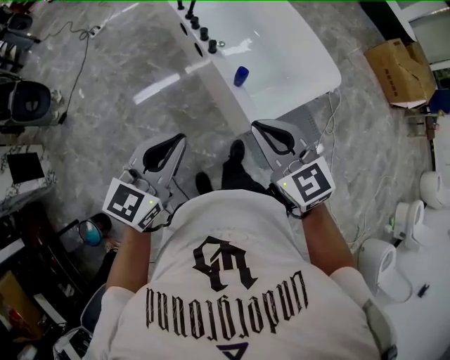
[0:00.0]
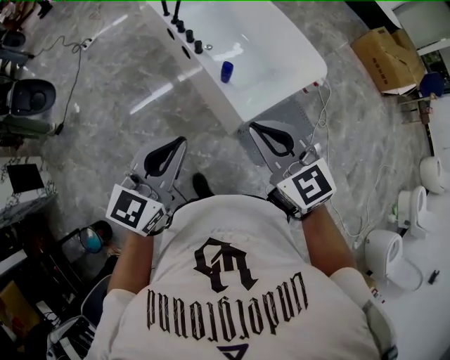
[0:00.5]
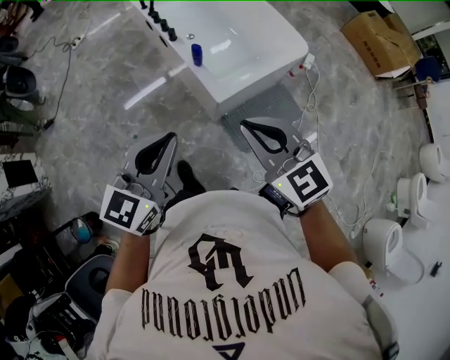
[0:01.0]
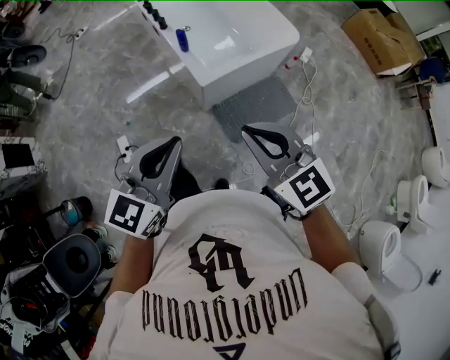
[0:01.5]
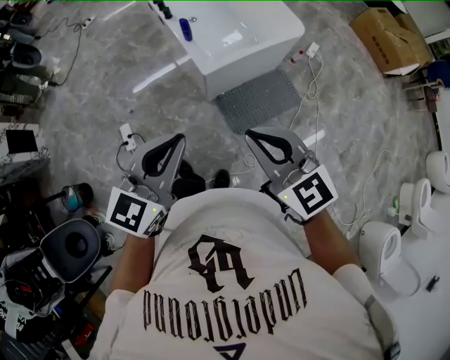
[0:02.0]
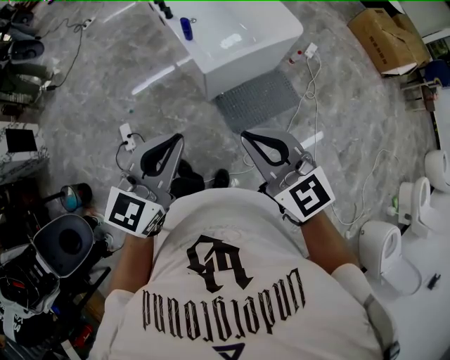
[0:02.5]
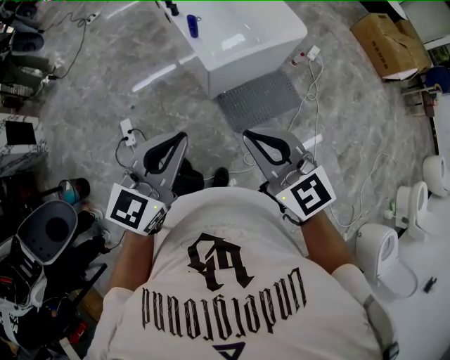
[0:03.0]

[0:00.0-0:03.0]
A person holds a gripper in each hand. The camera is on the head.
0:00.0 to 0:01.5: The two grippers go approximately 40 cm backward and to the right.
0:01.5 to 0:03.0: The two grippers go about 10 cm backward.

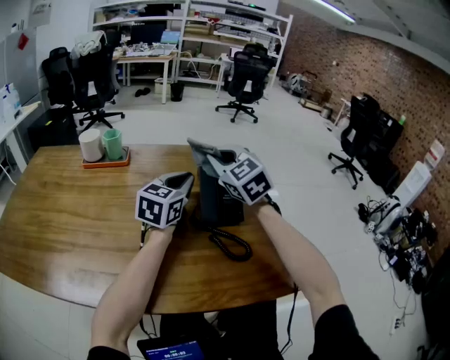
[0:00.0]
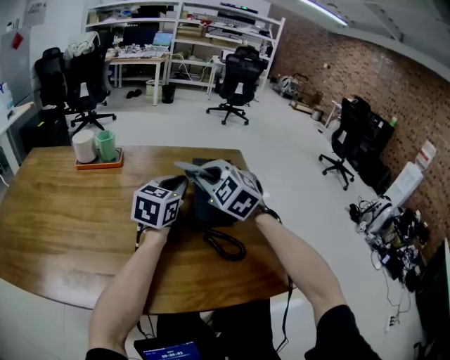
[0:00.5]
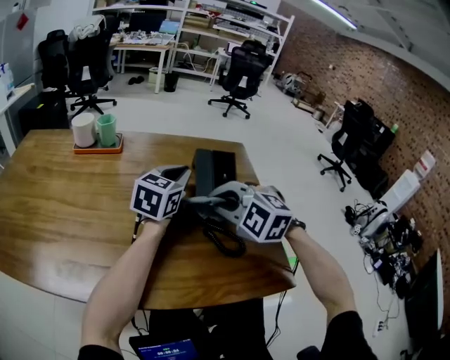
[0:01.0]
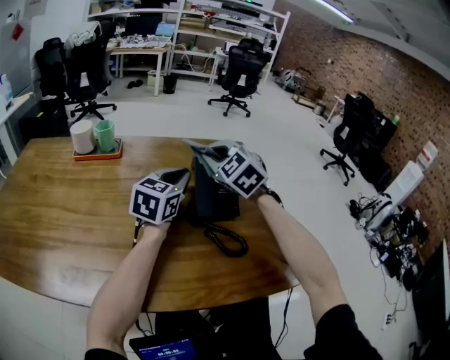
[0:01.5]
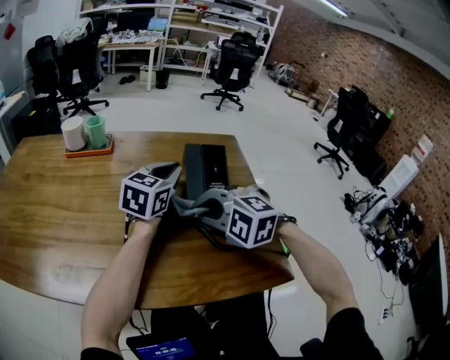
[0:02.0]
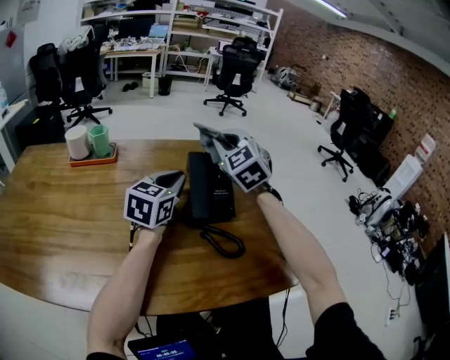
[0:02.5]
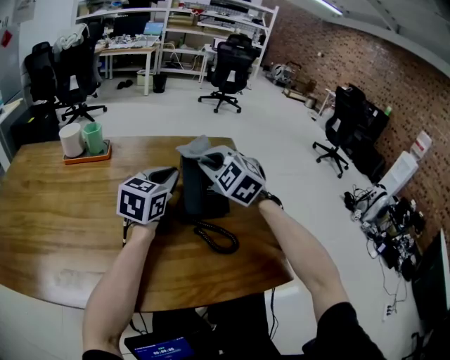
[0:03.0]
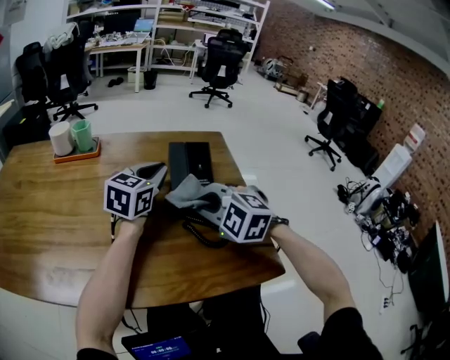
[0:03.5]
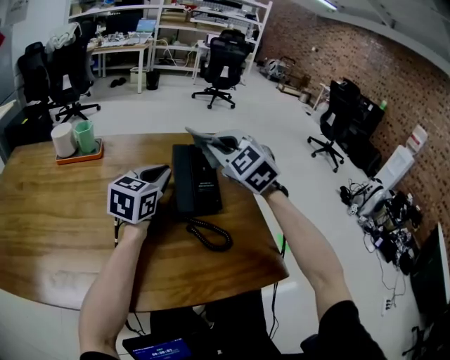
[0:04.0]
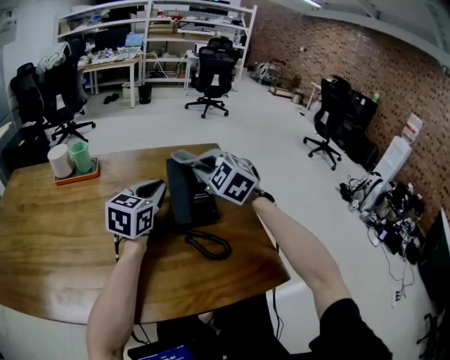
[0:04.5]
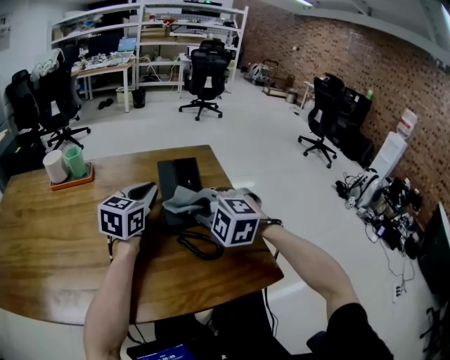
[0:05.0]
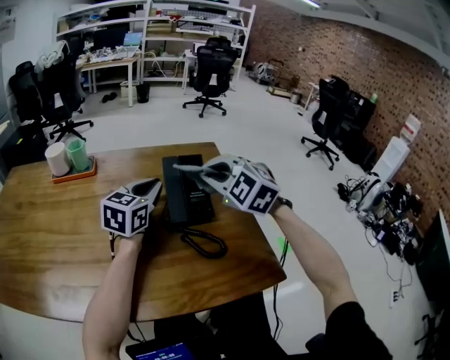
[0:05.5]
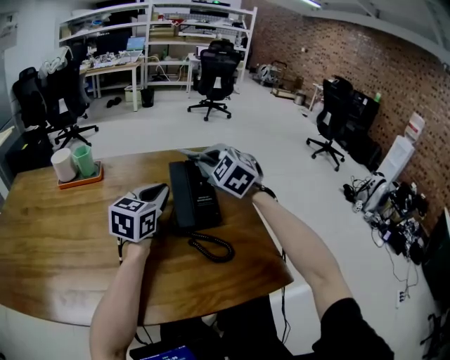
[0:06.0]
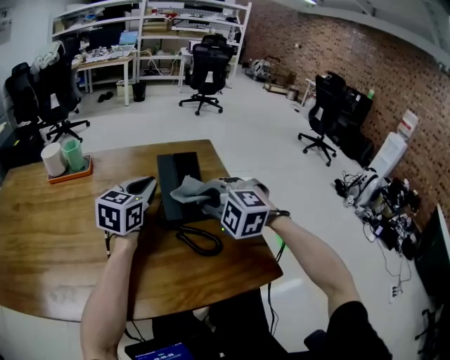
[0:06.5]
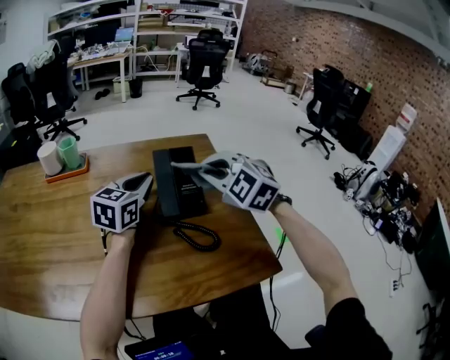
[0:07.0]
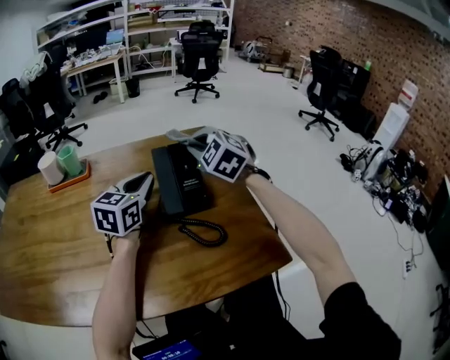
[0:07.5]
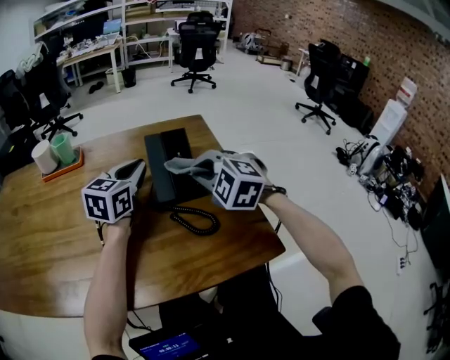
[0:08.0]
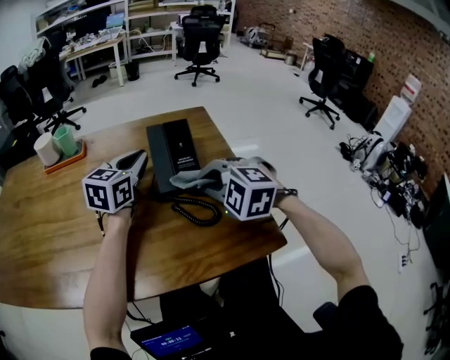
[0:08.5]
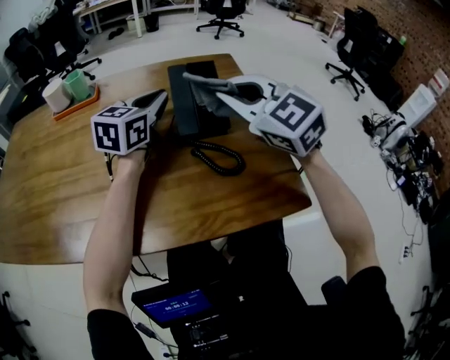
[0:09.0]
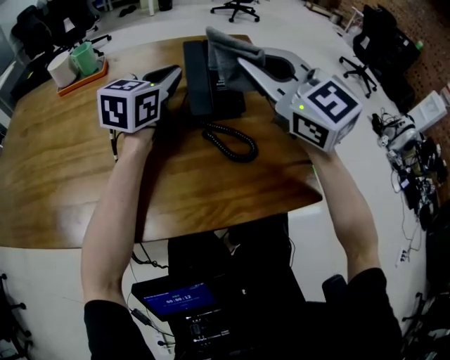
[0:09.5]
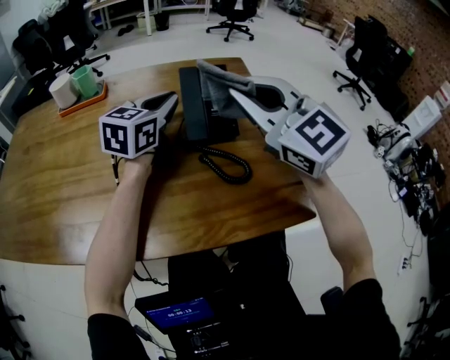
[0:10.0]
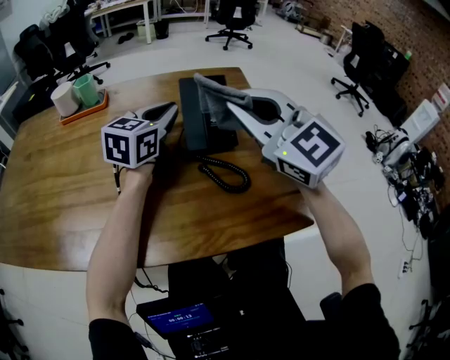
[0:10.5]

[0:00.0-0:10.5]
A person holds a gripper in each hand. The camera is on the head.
0:00.0 to 0:02.0: The right gripper moves forward and backward over some 15 cm, changing direction 2 times, and changes its angle by about 50 degrees.
0:02.0 to 0:04.0: The right gripper swings forward and backward, about 20 cm each way, with 2 reversals, and turns by about 40 degrees.
0:04.0 to 0:06.5: The right gripper goes forward and backward, some 15 cm each way, reversing 2 times, and swivels approximately 30 degrees.
0:06.5 to 0:08.5: The right gripper travels forward and back again, some 10 cm each way.
0:08.5 to 0:10.5: The right gripper goes roughly 15 cm upward, and tips its fingers upward by approximately 40 degrees.

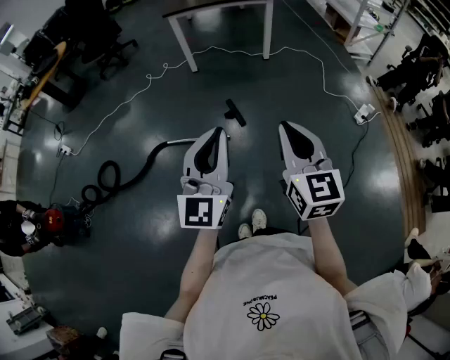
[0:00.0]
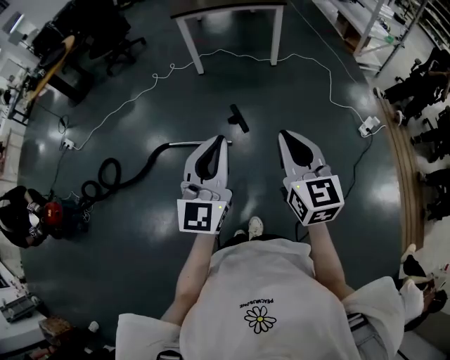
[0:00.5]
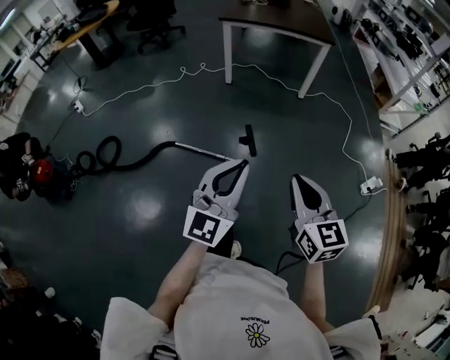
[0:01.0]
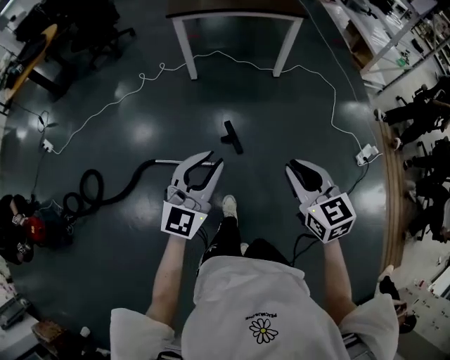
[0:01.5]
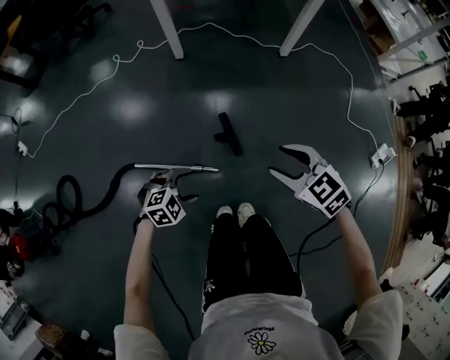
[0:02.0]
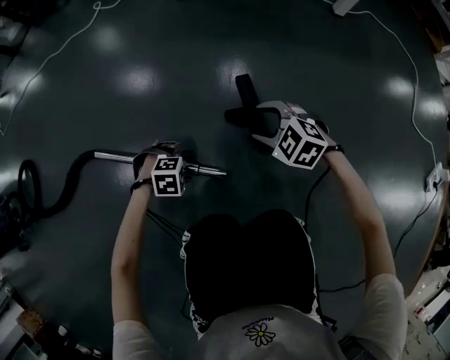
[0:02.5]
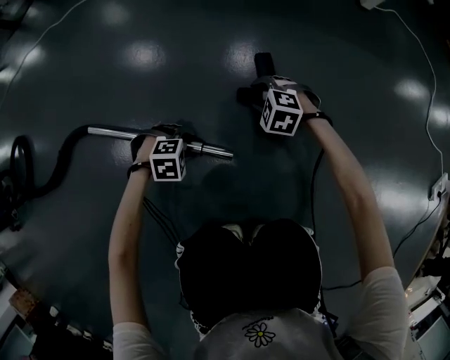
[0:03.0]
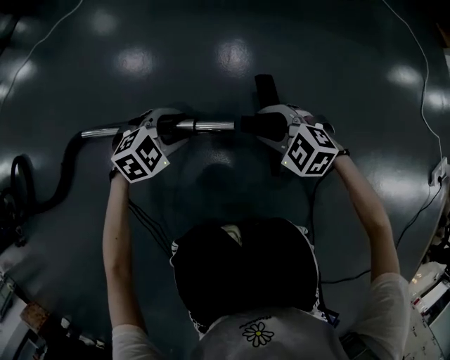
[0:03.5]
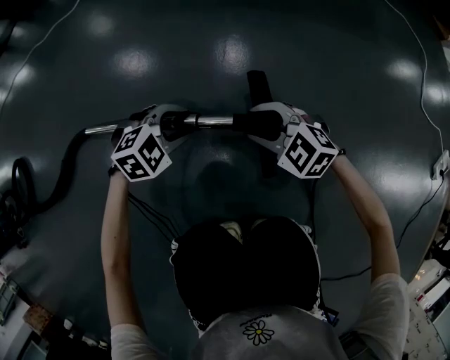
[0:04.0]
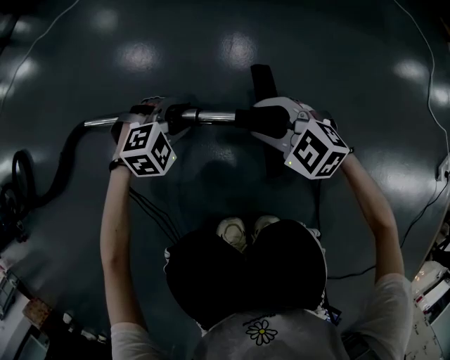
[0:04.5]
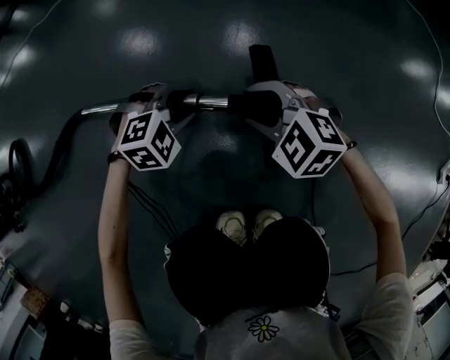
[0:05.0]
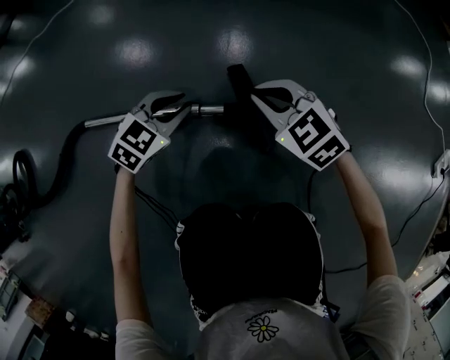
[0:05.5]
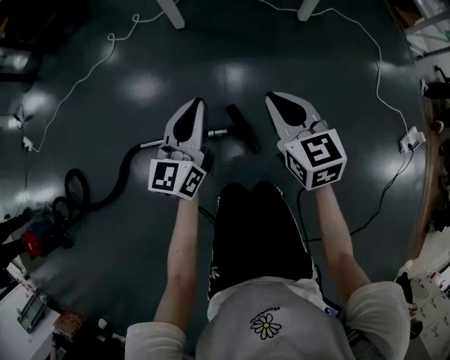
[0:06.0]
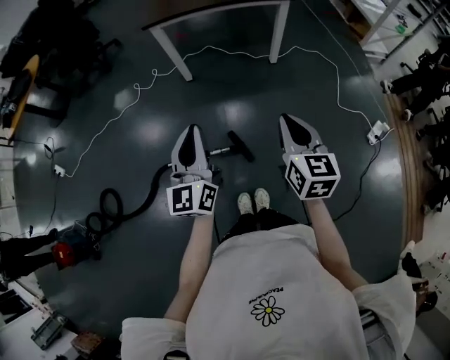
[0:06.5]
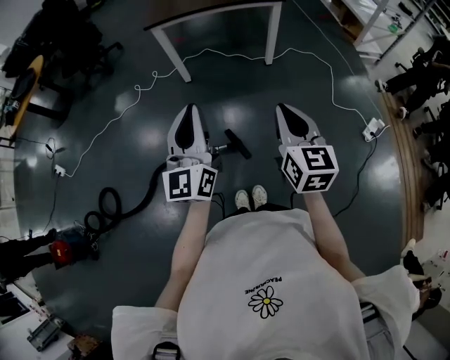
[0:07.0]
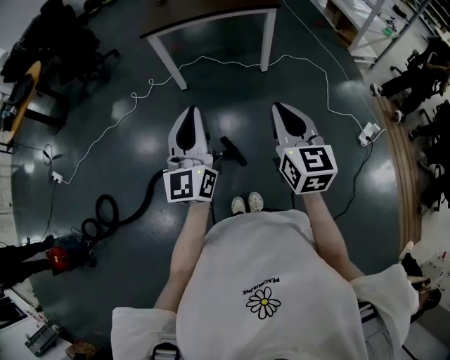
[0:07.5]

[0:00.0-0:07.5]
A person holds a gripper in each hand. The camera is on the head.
0:00.0 to 0:02.0: The right gripper goes about 60 cm forward and downward, points its fingers some 40 degrees further downward, and opens up. The left gripper goes about 70 cm downward and forward, points its fingers roughly 70 degrees further downward, and opens up.
0:02.0 to 0:04.0: The grippers both shift downward by about 50 cm. The left gripper closes its fingers, while the right gripper changes its angle by some 30 degrees.
0:04.0 to 0:05.5: The right gripper moves approximately 5 cm, and closes up, while the left gripper rotates approximately 30 degrees.
0:05.5 to 0:07.5: The grippers both shift upward by about 90 cm. The left gripper points its fingers some 60 degrees further upward; the right gripper tilts its fingers roughly 30 degrees upward.

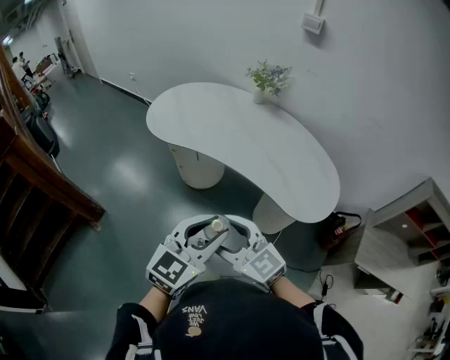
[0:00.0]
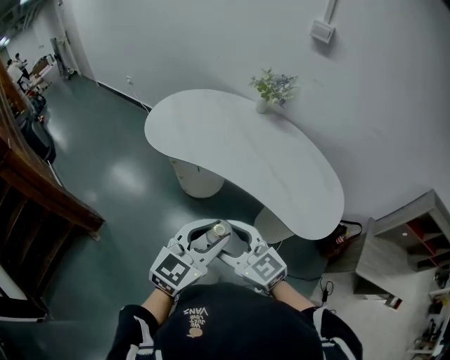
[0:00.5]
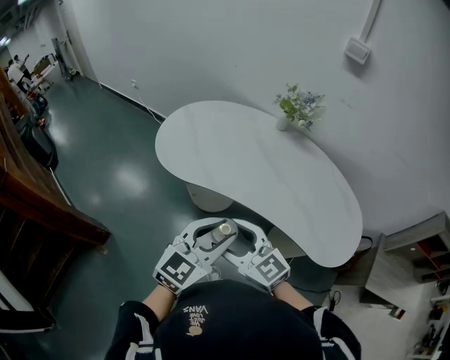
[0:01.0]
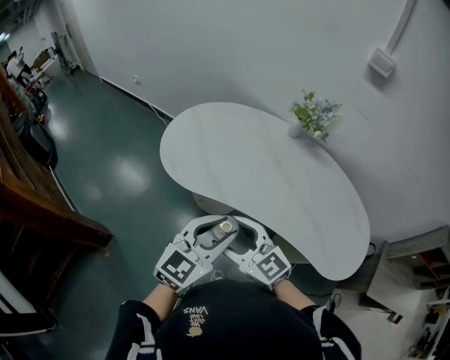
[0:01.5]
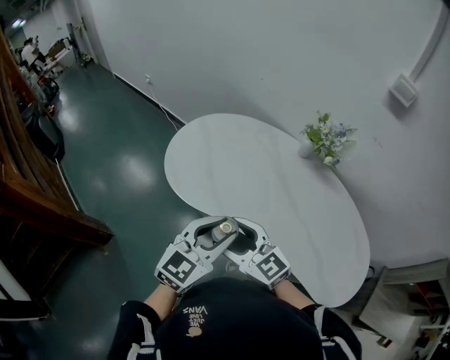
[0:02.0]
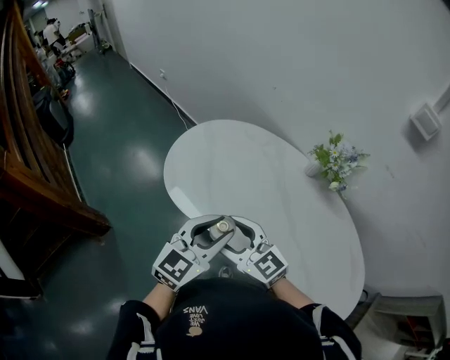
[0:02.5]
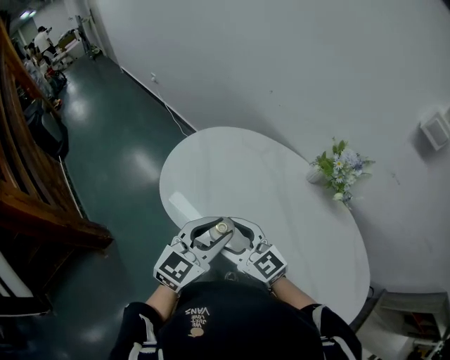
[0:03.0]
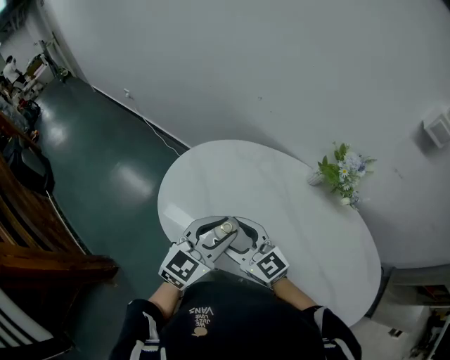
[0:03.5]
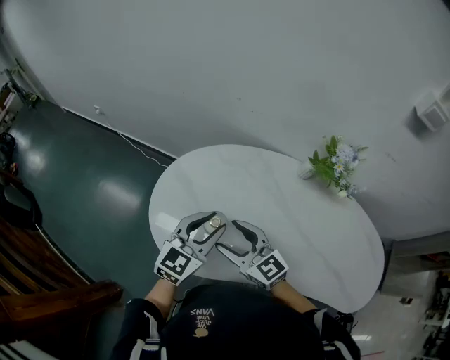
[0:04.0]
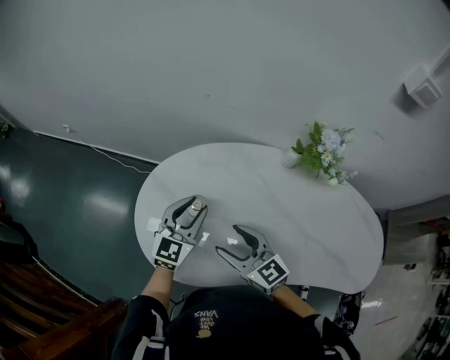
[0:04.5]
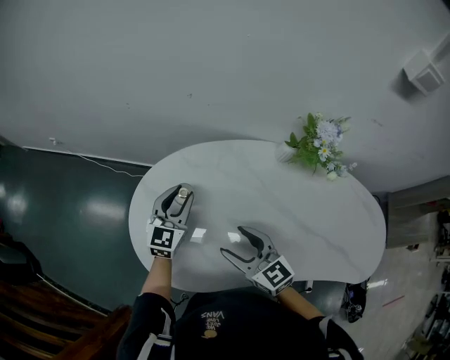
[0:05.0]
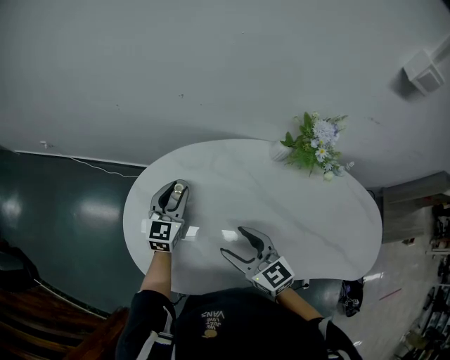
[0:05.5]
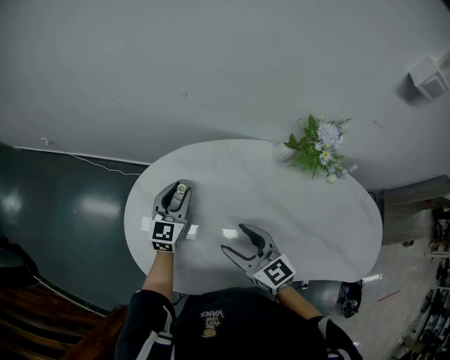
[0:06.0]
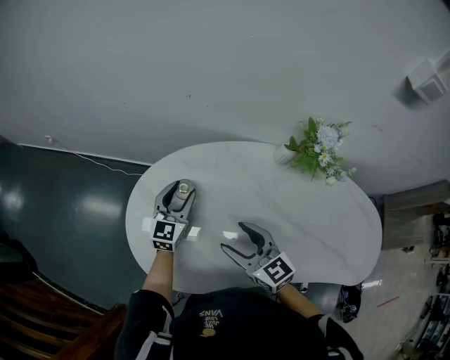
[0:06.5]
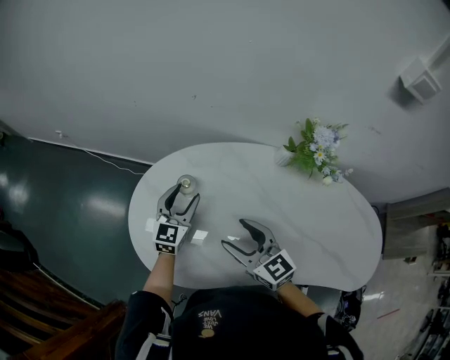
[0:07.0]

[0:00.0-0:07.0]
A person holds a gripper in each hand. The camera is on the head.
0:00.0 to 0:02.0: The two grippers travel together, forward, approximately 40 cm.
0:02.0 to 0:03.5: The two grippers go some 25 cm forward.
0:03.5 to 0:05.0: The left gripper heads forward and downward, covering roughly 30 cm. The right gripper moves forward, downward and to the right, about 10 cm, and rotates approximately 30 degrees.
0:05.0 to 0:07.0: The left gripper opens.
